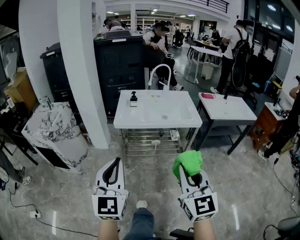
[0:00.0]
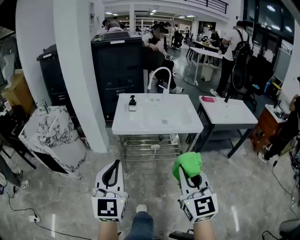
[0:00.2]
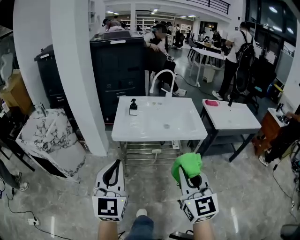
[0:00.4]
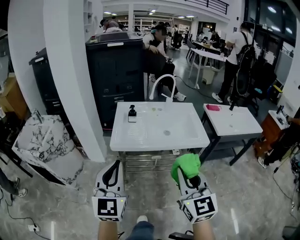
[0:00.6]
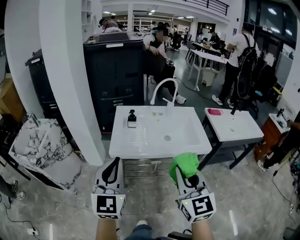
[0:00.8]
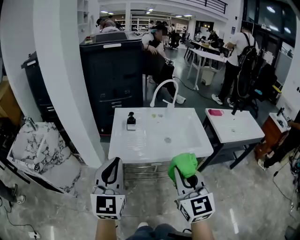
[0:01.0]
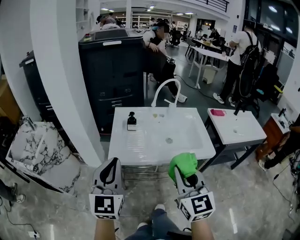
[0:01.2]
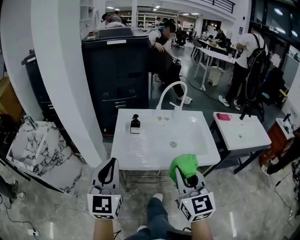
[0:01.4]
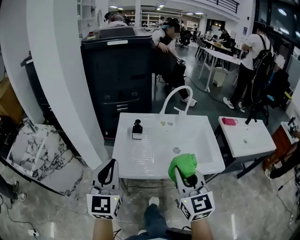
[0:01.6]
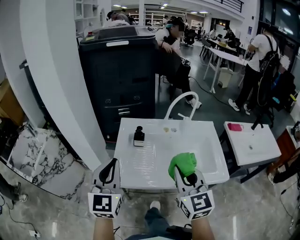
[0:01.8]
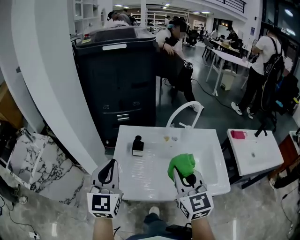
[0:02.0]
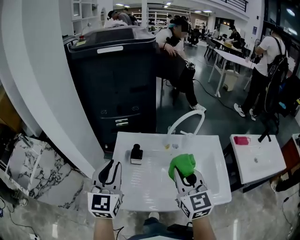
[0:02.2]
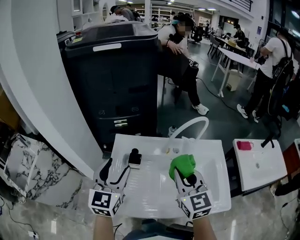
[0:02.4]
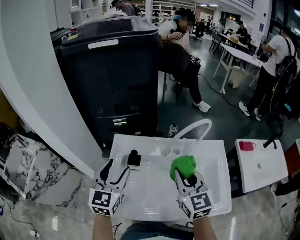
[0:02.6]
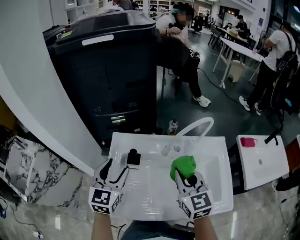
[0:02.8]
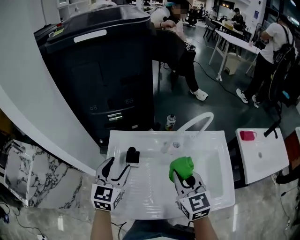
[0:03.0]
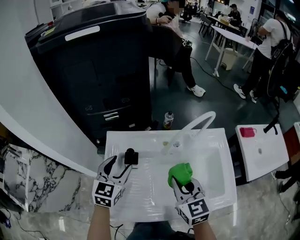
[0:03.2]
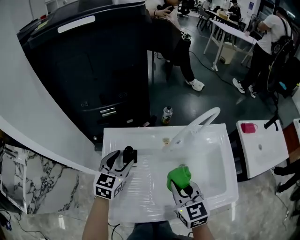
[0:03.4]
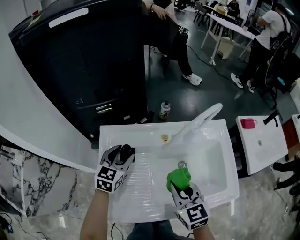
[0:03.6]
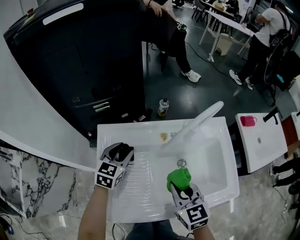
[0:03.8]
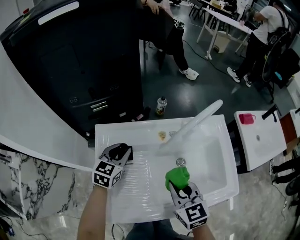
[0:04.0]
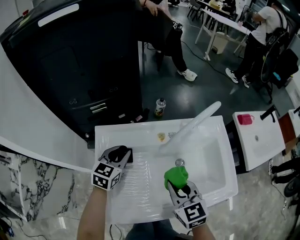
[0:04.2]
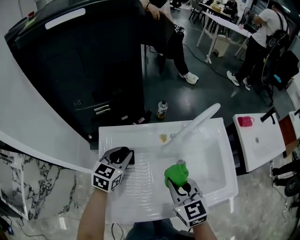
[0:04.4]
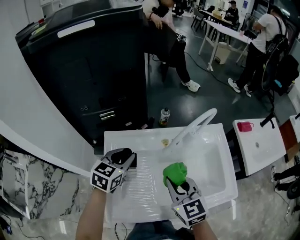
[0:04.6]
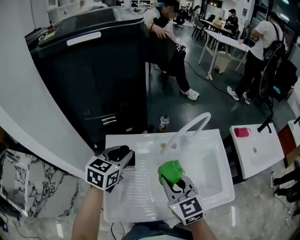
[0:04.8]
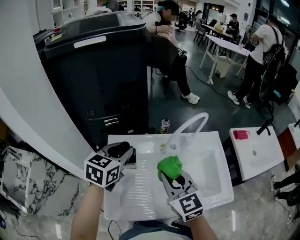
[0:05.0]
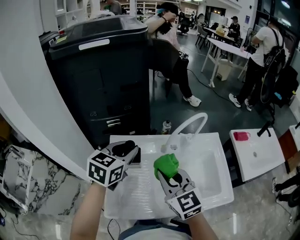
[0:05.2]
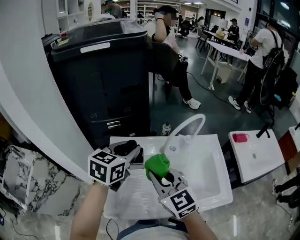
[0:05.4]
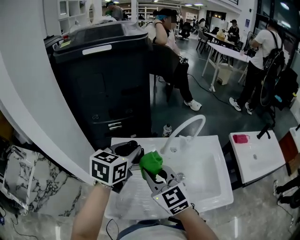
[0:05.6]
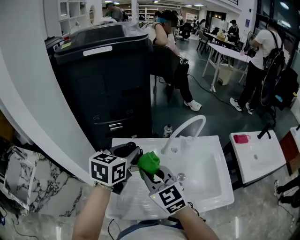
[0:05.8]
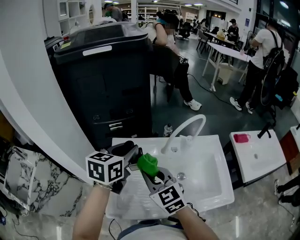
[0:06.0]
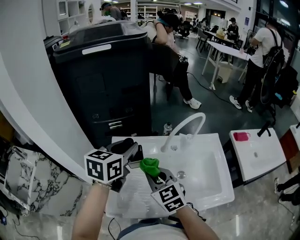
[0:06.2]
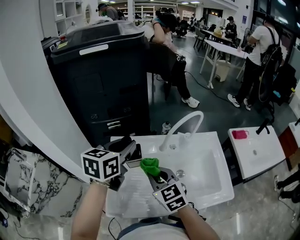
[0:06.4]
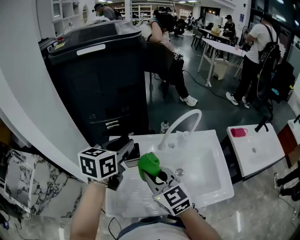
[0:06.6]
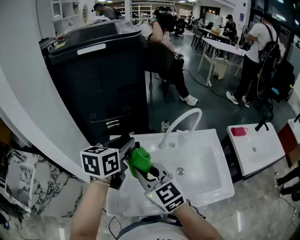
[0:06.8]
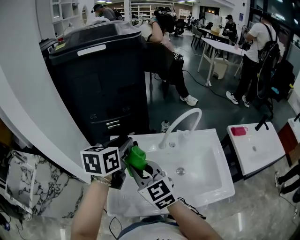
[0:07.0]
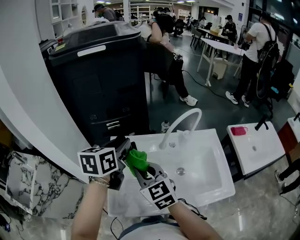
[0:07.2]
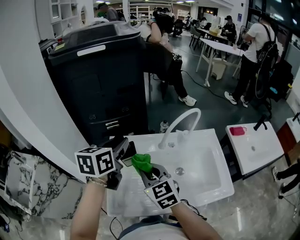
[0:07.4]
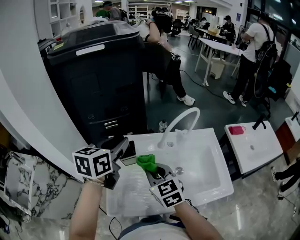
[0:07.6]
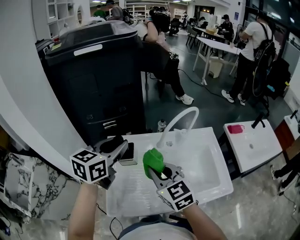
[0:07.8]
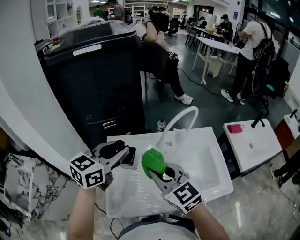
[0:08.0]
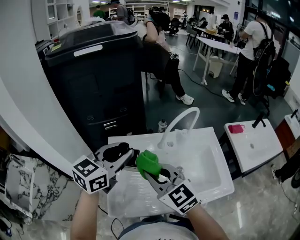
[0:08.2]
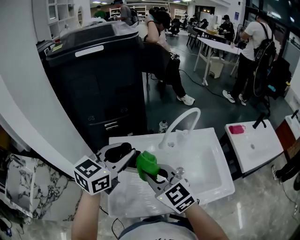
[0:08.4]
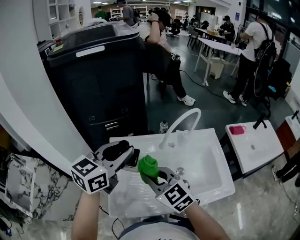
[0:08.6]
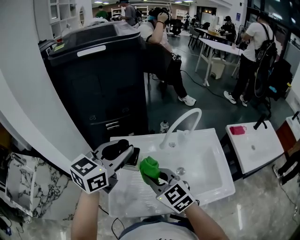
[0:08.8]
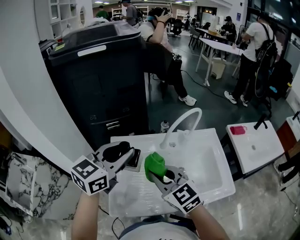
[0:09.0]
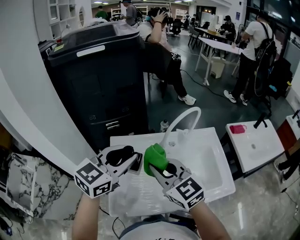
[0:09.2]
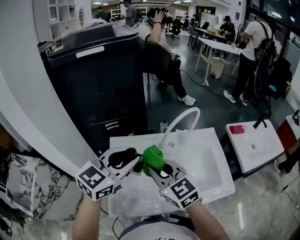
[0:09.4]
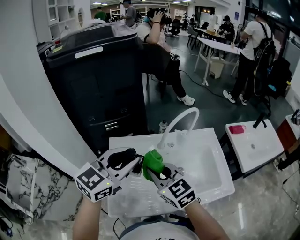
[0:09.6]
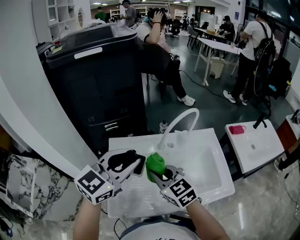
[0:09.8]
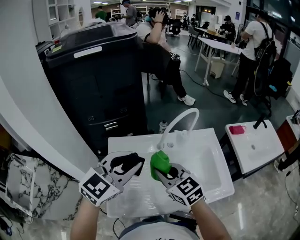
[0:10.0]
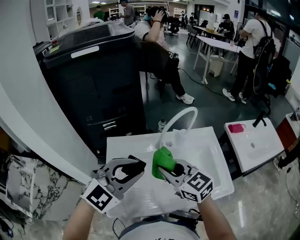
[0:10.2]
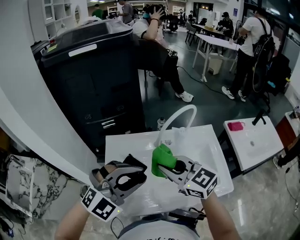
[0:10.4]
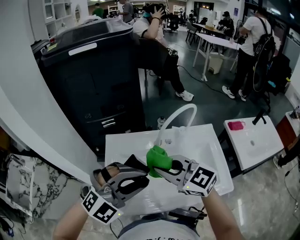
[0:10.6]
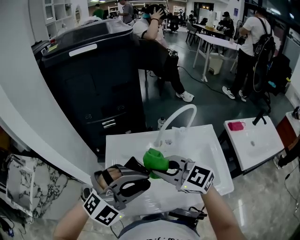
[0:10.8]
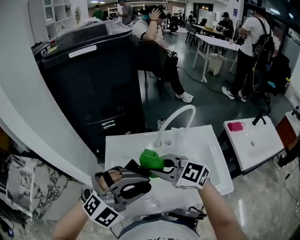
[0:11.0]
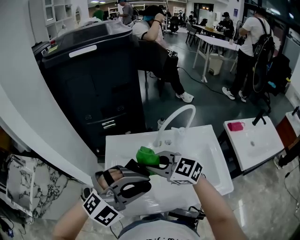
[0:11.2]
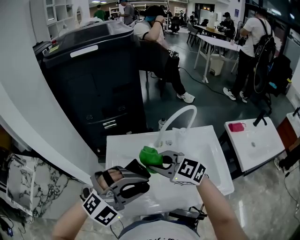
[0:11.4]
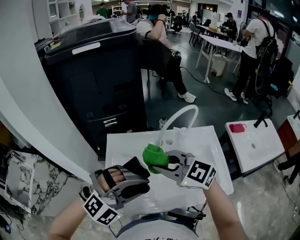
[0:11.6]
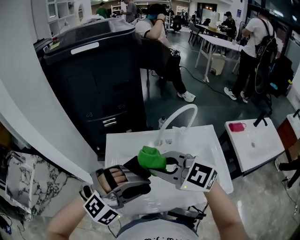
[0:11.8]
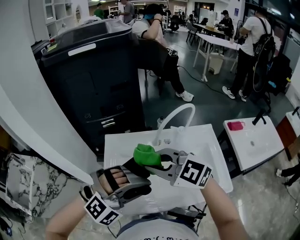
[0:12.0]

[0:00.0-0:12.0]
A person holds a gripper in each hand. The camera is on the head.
0:00.0 to 0:01.6: The two grippers go approximately 40 cm forward.
0:01.6 to 0:03.0: The right gripper shifts approximately 25 cm forward. The left gripper heads forward and downward, covering about 30 cm, changes its angle by about 20 degrees, and opens its fingers.
0:03.0 to 0:04.4: The right gripper is displaced downward by some 5 cm; the left gripper moves downward and forward, some 10 cm, turns by about 20 degrees, and closes its fingers.
0:04.4 to 0:06.0: The right gripper travels to the left and upward by about 10 cm, and changes its angle by about 20 degrees, while the left gripper travels upward by approximately 20 cm.
0:06.0 to 0:07.6: The grippers make only small movements.
0:07.6 to 0:09.0: The left gripper moves backward, about 5 cm, and swivels some 20 degrees. Meanwhile the right gripper shifts by approximately 5 cm.
0:09.0 to 0:10.4: The right gripper shifts approximately 5 cm to the right; the left gripper travels backward and to the right by roughly 10 cm, and twists approximately 50 degrees clockwise, seen from behind.
0:10.4 to 0:12.0: The left gripper changes place by approximately 5 cm, and changes its angle by approximately 30 degrees. The right gripper changes place by some 5 cm, and swivels about 20 degrees.

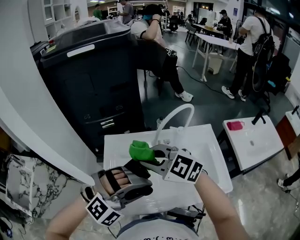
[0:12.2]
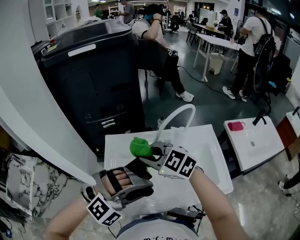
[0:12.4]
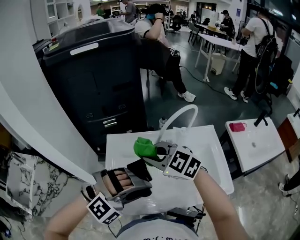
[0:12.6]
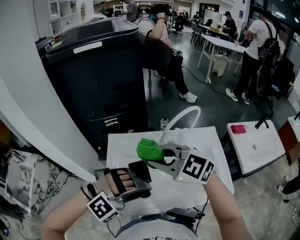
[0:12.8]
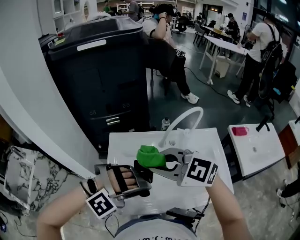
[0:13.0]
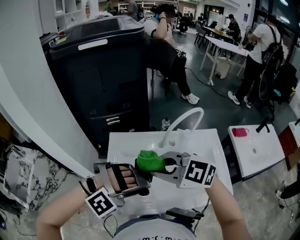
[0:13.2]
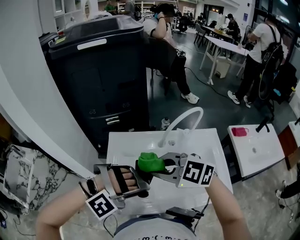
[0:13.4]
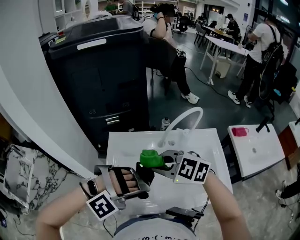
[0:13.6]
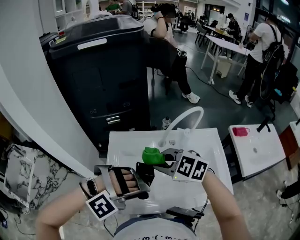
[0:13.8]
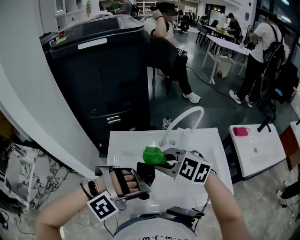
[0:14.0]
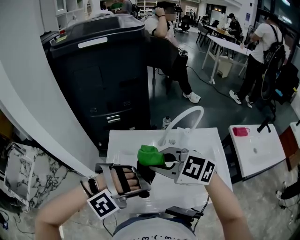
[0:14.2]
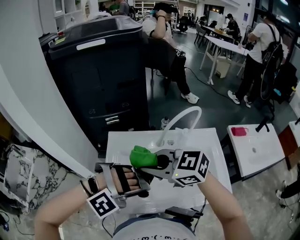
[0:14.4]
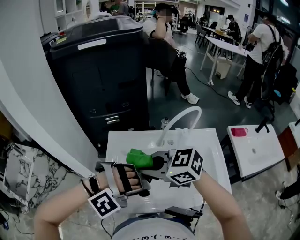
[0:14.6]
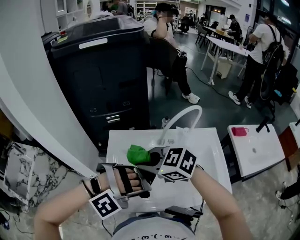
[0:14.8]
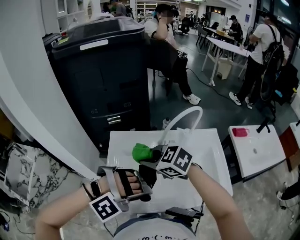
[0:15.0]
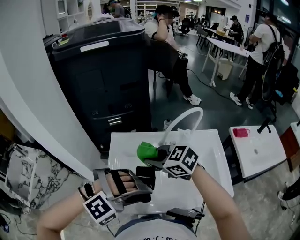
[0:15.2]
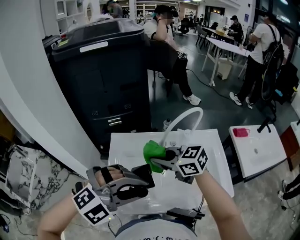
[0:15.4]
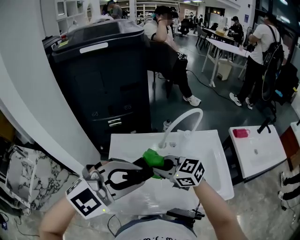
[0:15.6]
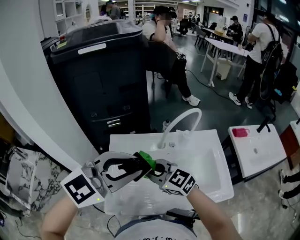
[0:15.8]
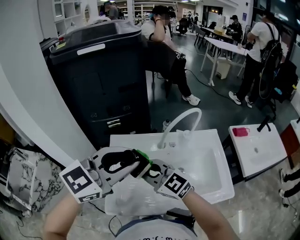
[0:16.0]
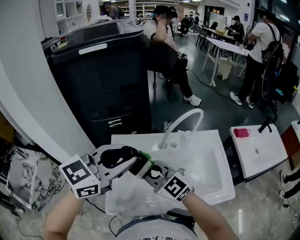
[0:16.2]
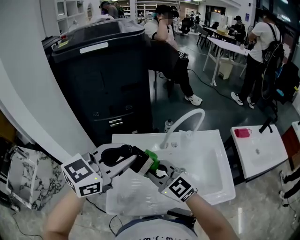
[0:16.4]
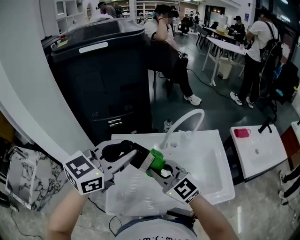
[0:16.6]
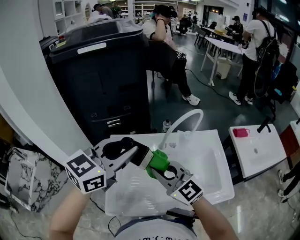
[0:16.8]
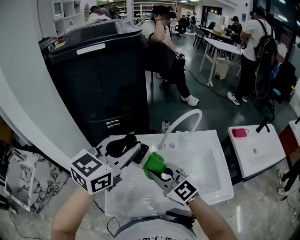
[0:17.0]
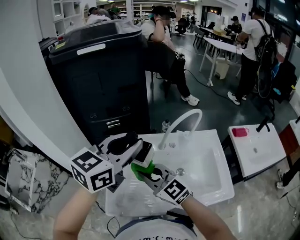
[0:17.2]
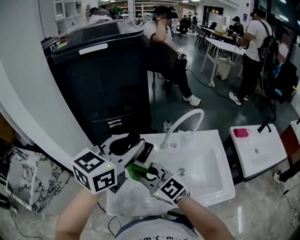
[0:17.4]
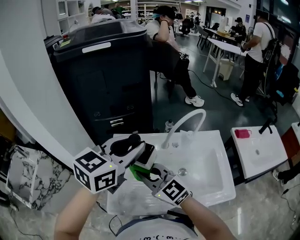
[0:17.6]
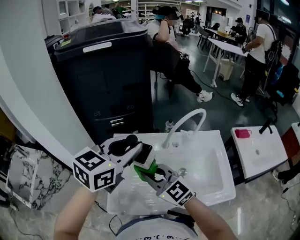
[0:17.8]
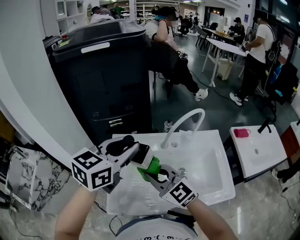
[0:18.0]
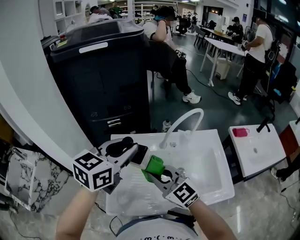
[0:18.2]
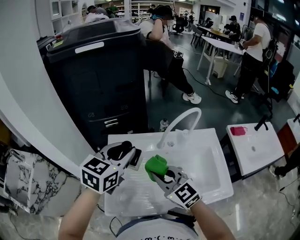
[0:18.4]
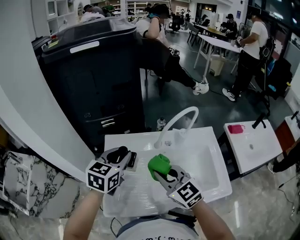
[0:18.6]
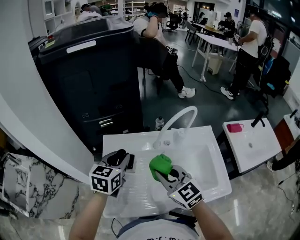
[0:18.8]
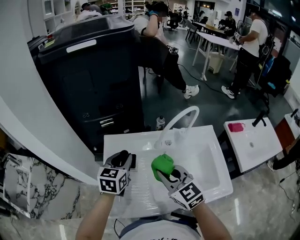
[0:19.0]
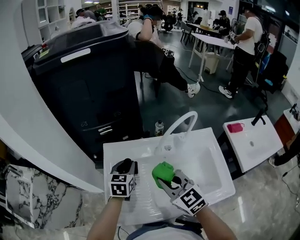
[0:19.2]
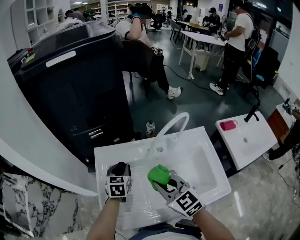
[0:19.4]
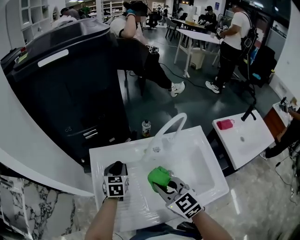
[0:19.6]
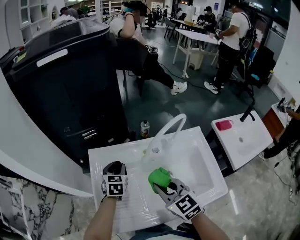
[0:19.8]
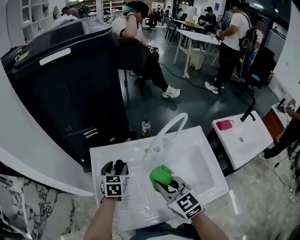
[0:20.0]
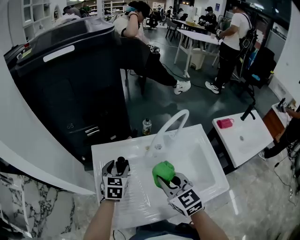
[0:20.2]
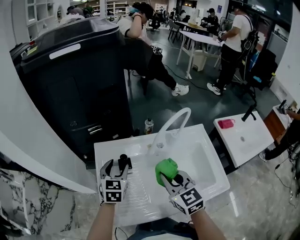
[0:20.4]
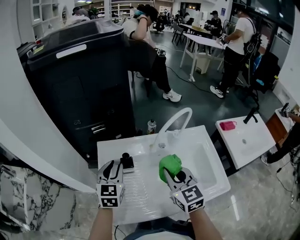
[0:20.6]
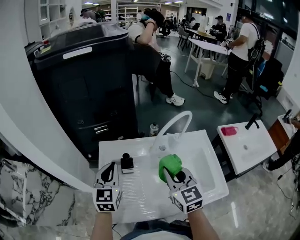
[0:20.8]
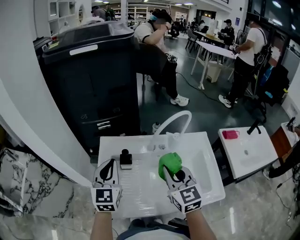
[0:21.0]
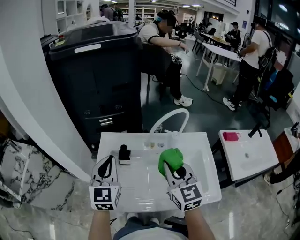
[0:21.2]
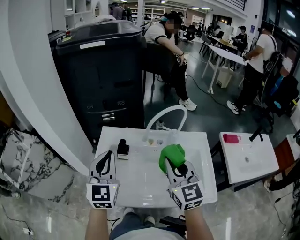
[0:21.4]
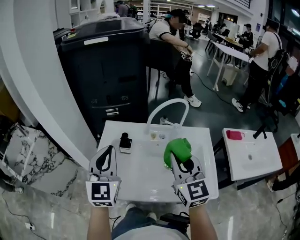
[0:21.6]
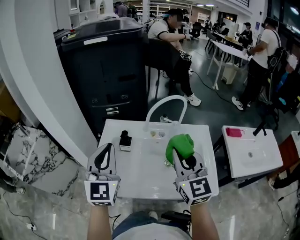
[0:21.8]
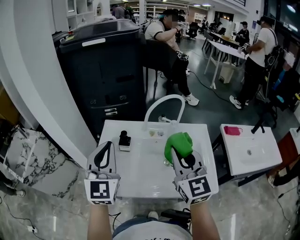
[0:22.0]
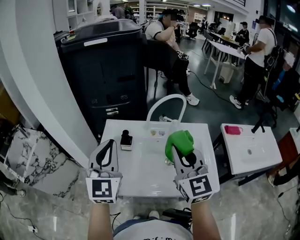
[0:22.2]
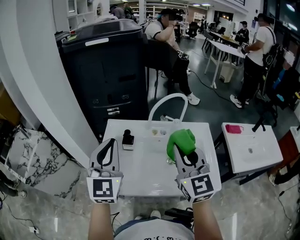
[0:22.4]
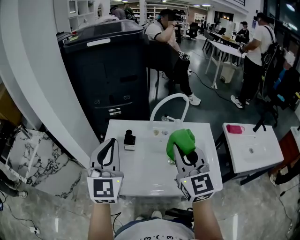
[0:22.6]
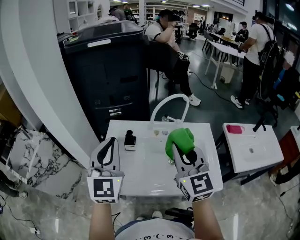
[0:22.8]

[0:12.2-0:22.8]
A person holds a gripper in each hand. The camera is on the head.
0:12.2 to 0:13.8: The two grippers go roughly 5 cm downward. The left gripper turns by some 30 degrees.
0:15.2 to 0:16.8: The right gripper changes place by about 5 cm, and rotates some 40 degrees. The left gripper changes place by some 20 cm, and rotates around the line of its fingers by some 80 degrees, counterclockwise from behind.
0:18.2 to 0:19.8: The right gripper is displaced to the right by approximately 10 cm, and swivels approximately 20 degrees. Meanwhile the left gripper goes roughly 30 cm downward, and rotates some 30 degrees.
0:19.8 to 0:21.2: The left gripper shifts some 25 cm upward and backward, points its fingers approximately 30 degrees further upward, and closes; the right gripper travels upward and to the right by approximately 10 cm.
0:21.2 to 0:22.8: The two grippers go some 10 cm upward and backward.

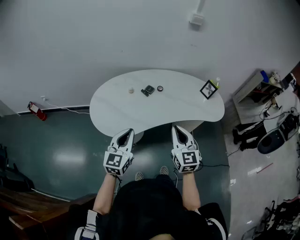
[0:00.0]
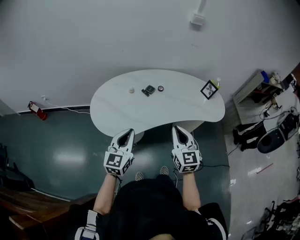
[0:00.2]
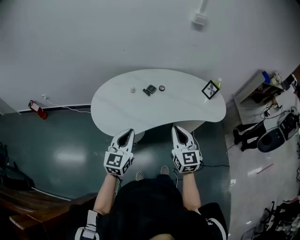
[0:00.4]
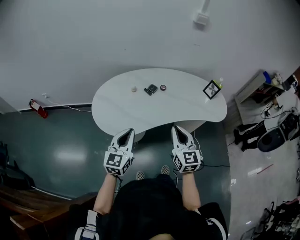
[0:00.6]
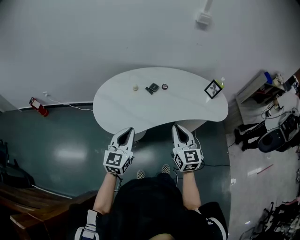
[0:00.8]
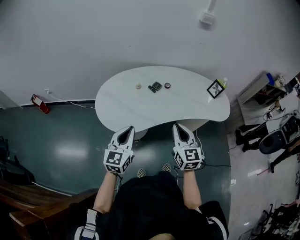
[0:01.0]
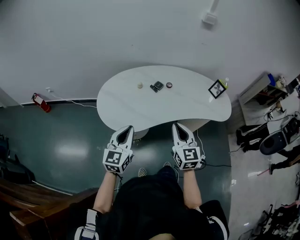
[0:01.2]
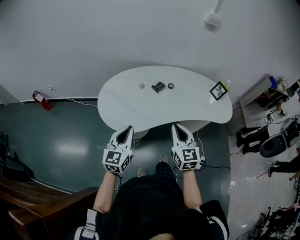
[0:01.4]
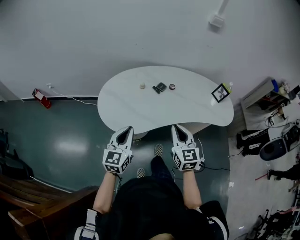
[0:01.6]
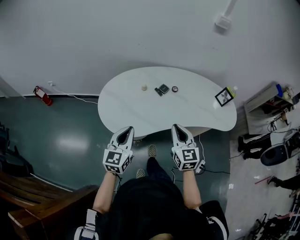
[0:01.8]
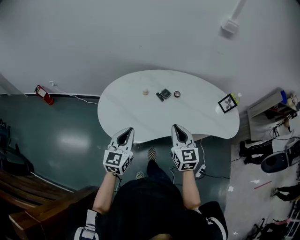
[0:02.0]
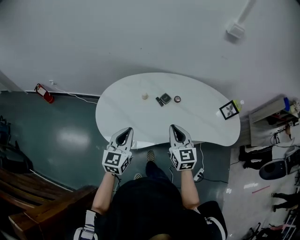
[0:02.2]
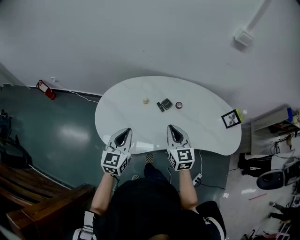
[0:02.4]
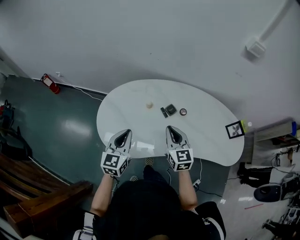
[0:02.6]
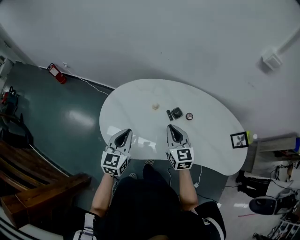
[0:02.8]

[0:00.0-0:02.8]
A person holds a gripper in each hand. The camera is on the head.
0:00.0 to 0:01.4: Both grippers move to the left, about 5 cm.
0:01.4 to 0:02.8: The grippers both shift forward by some 30 cm. The right gripper changes its angle by approximately 20 degrees. The left gripper swivels roughly 20 degrees.
